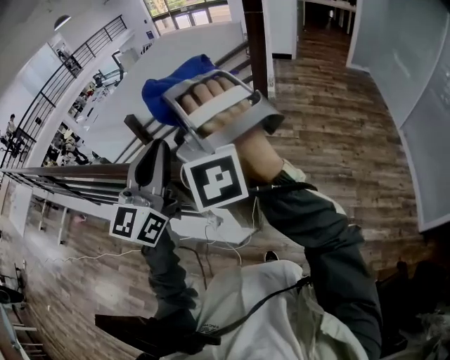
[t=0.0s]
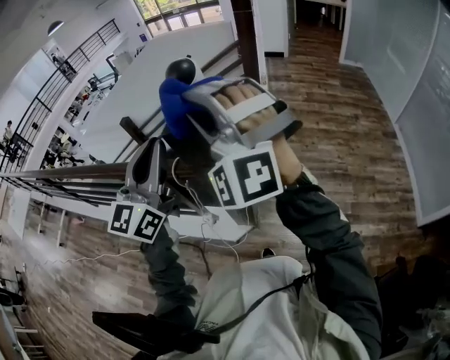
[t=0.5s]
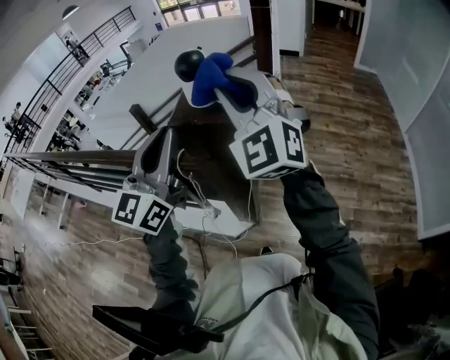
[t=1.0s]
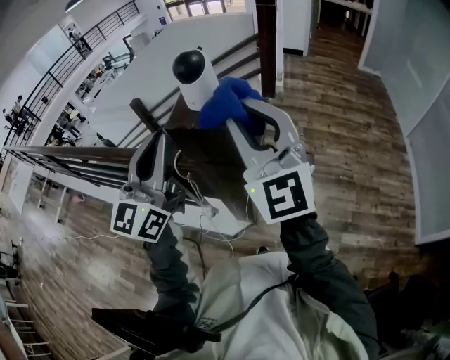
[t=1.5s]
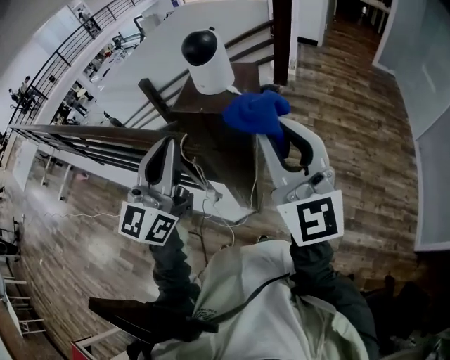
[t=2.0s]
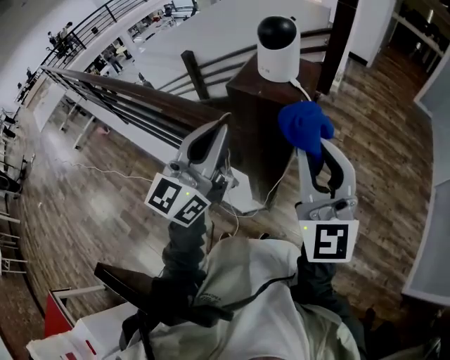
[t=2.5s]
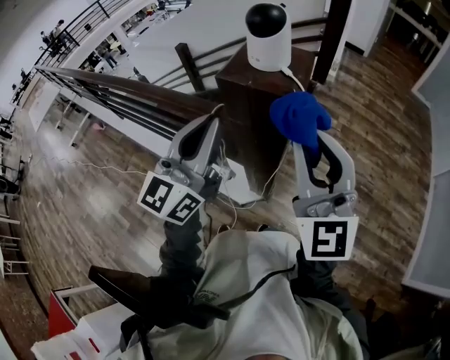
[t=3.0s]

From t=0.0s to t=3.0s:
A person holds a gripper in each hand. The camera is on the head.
From t=0.0s to t=1.5s: The right gripper travels to the right by some 15 cm, and twists some 60 degrees clockwise, seen from behind.
From t=1.5s to t=3.0s: The right gripper travels downward and backward by some 5 cm; the left gripper heads downward, covering about 5 cm.

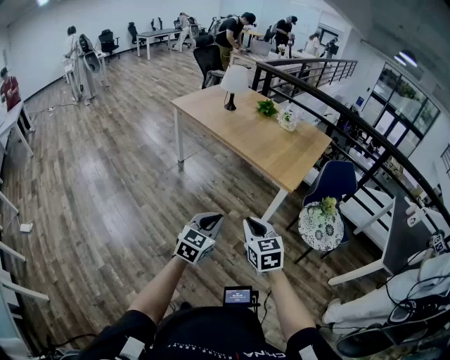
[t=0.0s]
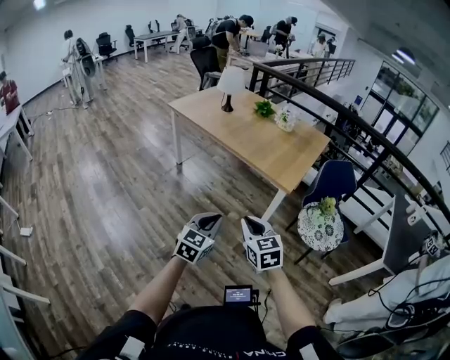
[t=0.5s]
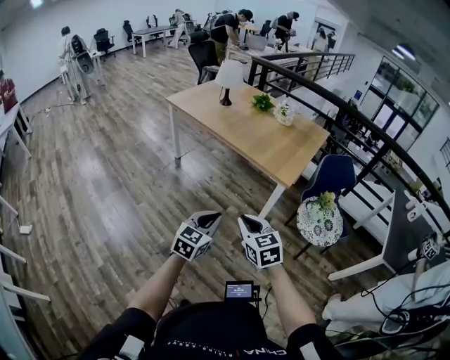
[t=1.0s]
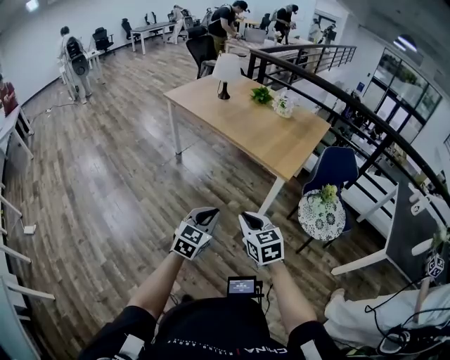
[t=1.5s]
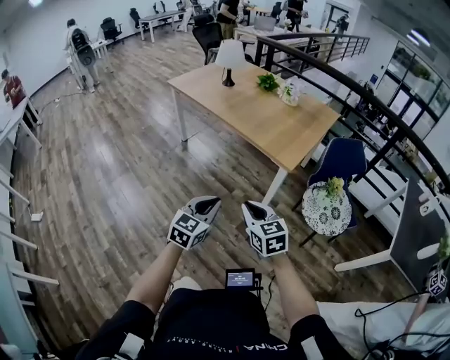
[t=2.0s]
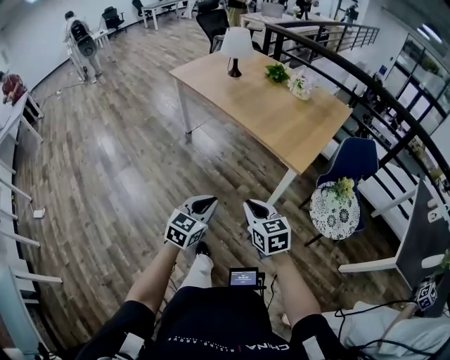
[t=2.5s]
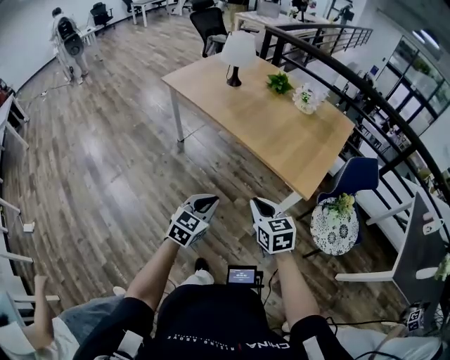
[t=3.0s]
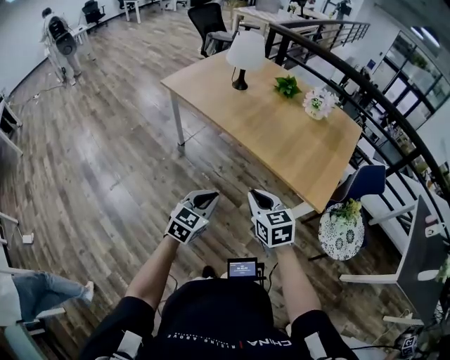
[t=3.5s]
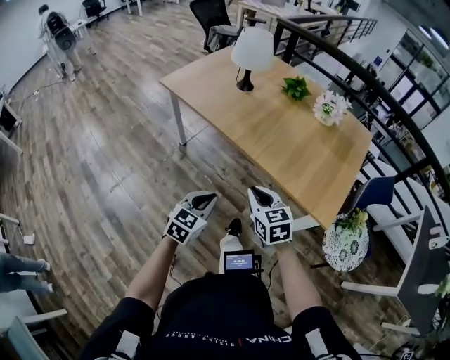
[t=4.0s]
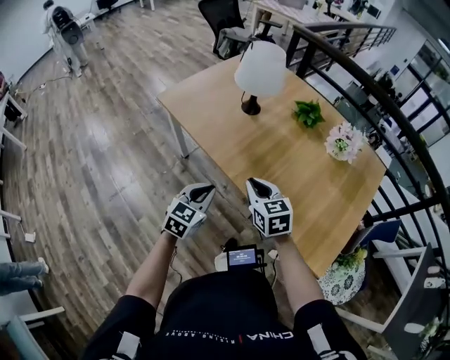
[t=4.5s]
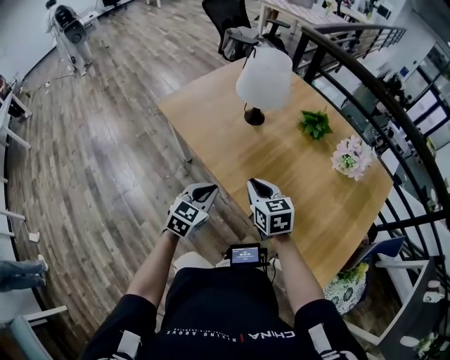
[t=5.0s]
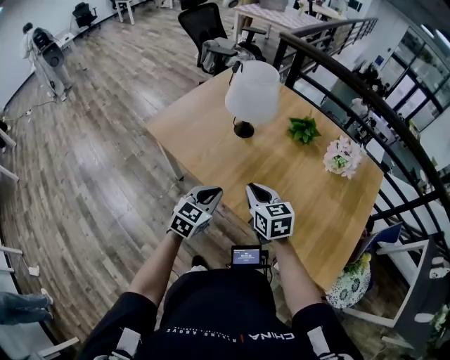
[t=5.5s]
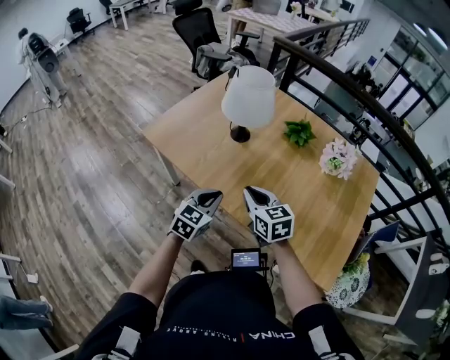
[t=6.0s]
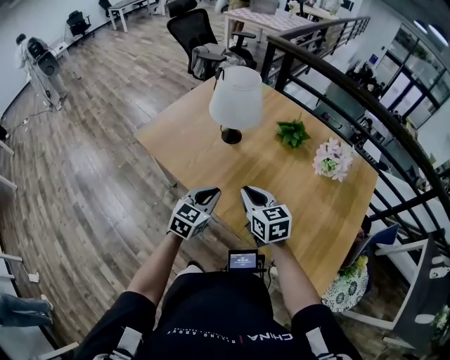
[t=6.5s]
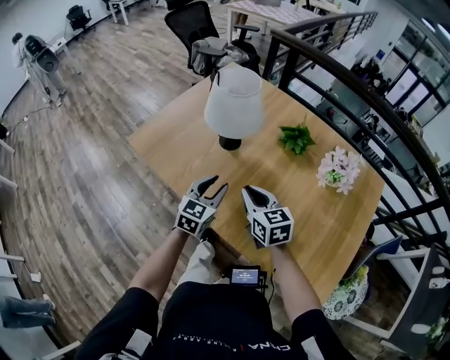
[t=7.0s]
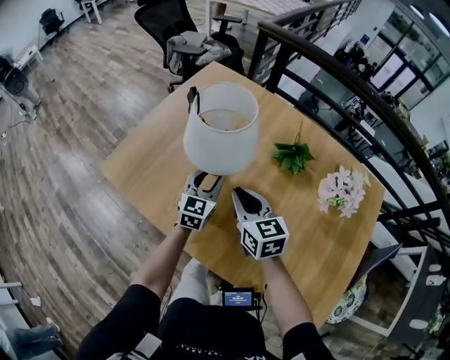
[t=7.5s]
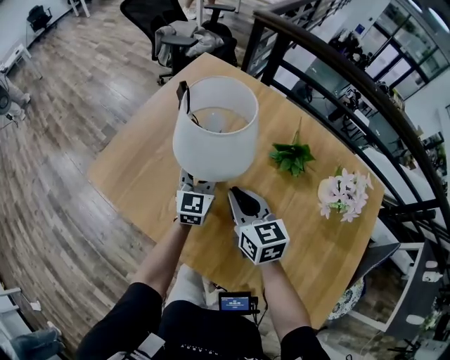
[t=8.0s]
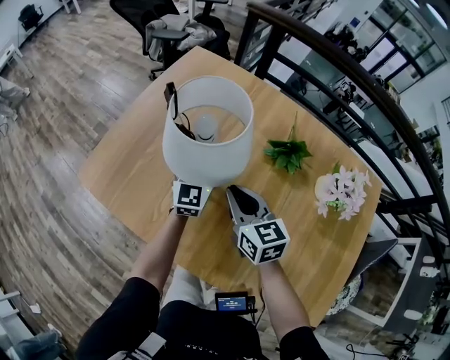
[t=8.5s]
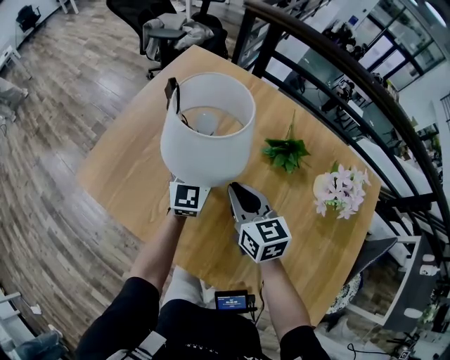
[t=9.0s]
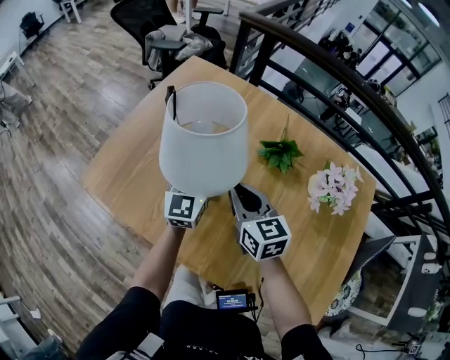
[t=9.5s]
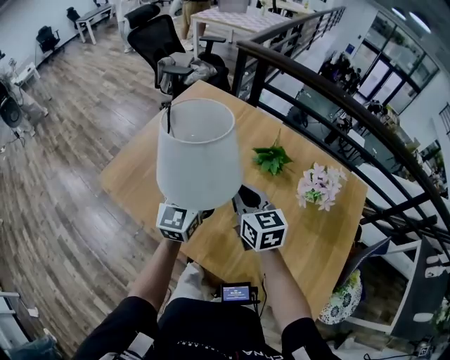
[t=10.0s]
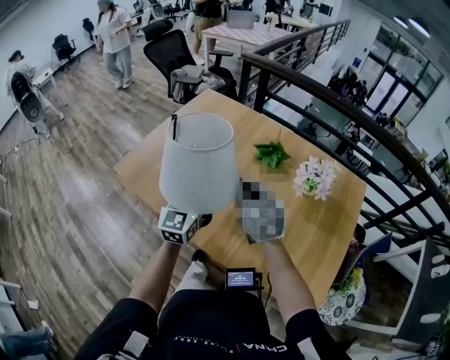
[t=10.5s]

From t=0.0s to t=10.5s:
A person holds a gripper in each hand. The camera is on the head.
From t=0.0s to t=2.0s: The two grippers go approximately 5 cm to the right.
From t=2.0s to t=4.0s: Both grippers are carried forward and to the left, about 50 cm.
From t=4.0s to t=6.5s: The grippers both shift forward by about 40 cm.
From t=6.5s to t=8.5s: The two grippers go about 35 cm forward. The left gripper turns by some 20 degrees, and opens up.
From t=8.5s to t=10.5s: The left gripper shifts some 35 cm backward and upward, and closes up; the right gripper travels backward and upward by some 20 cm.

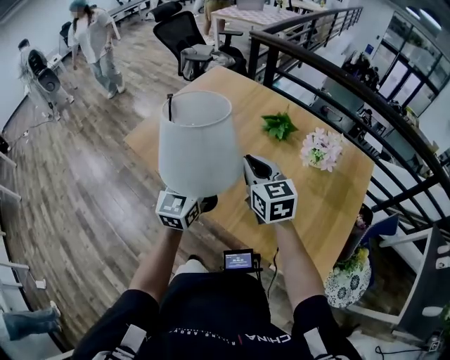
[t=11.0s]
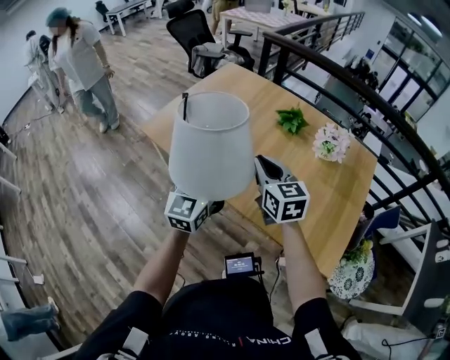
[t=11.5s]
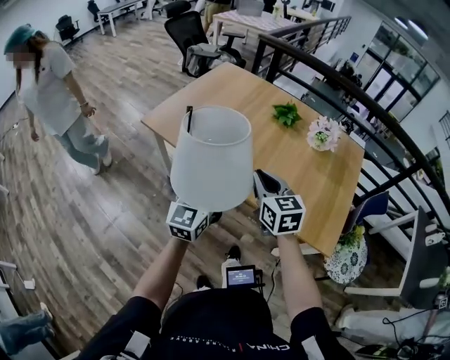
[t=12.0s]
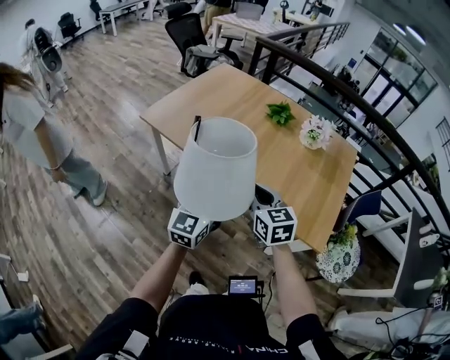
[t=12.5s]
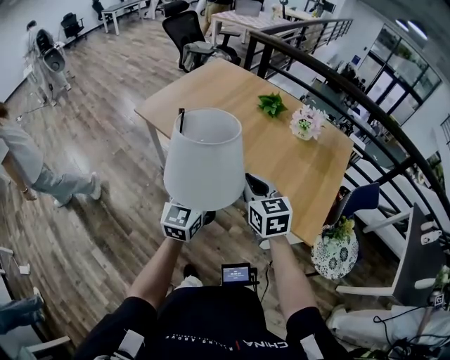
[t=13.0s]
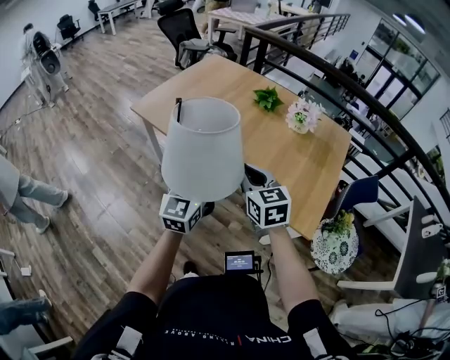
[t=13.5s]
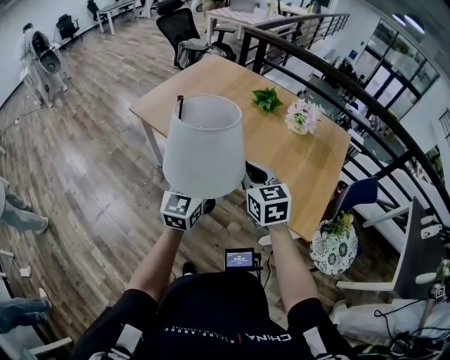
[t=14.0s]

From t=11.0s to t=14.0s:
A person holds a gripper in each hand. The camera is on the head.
From t=11.0s to t=12.5s: Both grippers travel together backward, roughly 25 cm.
From t=12.5s to t=14.0s: Both grippers travel together to the right, roughly 5 cm.

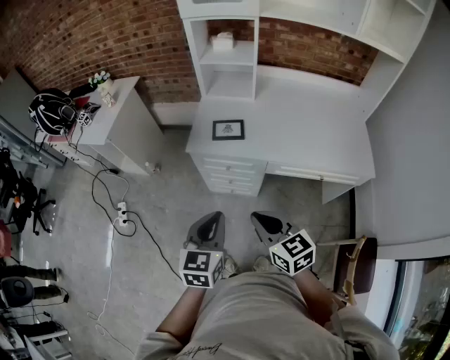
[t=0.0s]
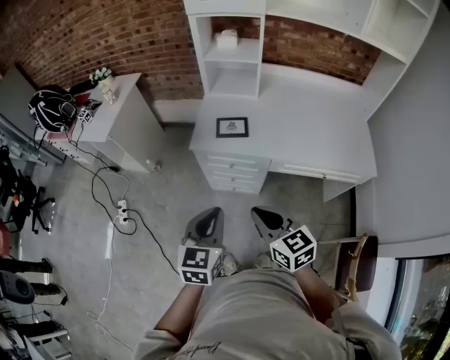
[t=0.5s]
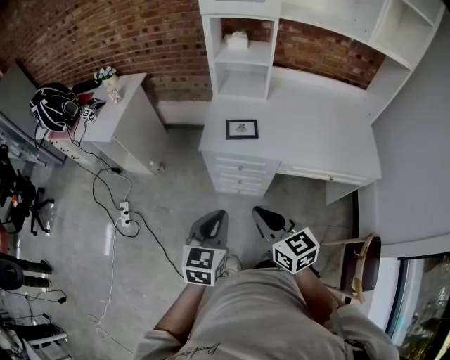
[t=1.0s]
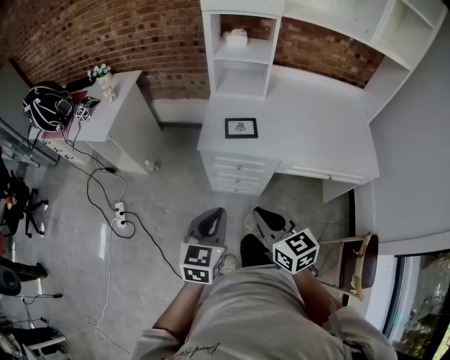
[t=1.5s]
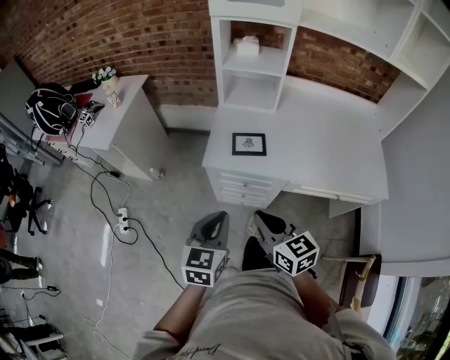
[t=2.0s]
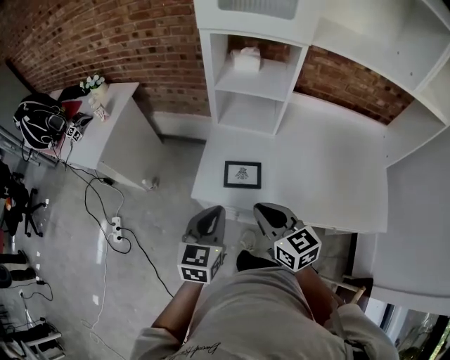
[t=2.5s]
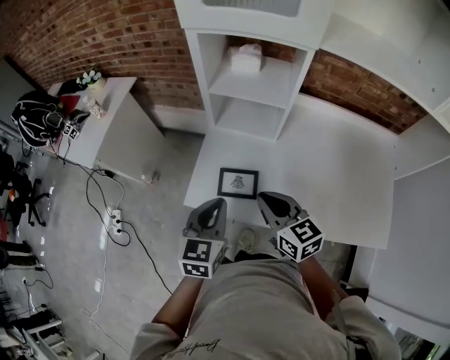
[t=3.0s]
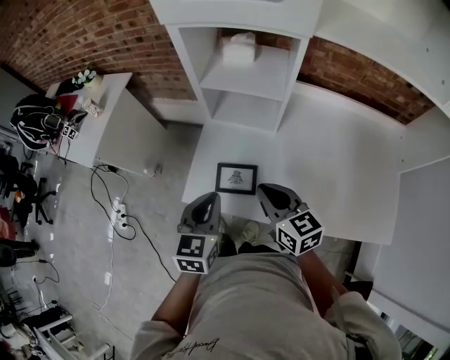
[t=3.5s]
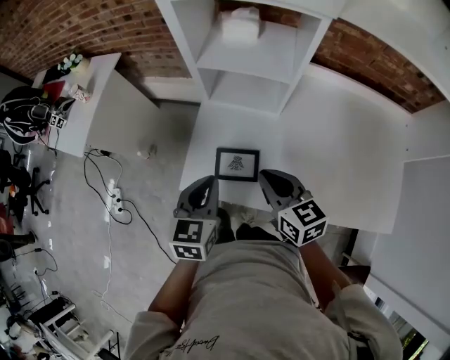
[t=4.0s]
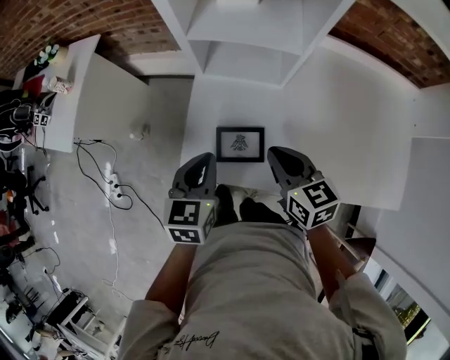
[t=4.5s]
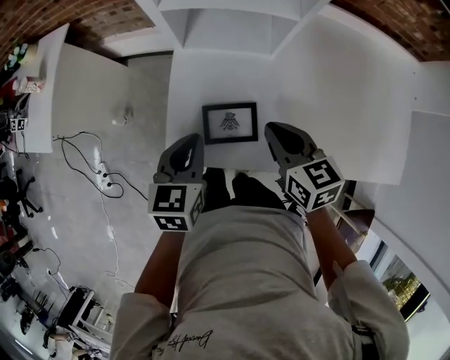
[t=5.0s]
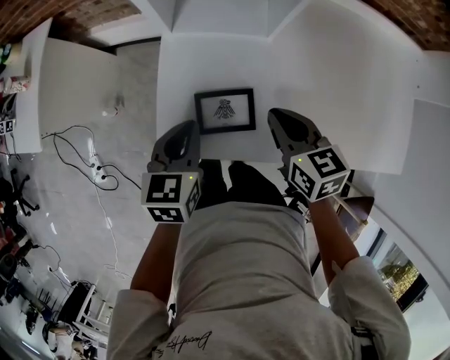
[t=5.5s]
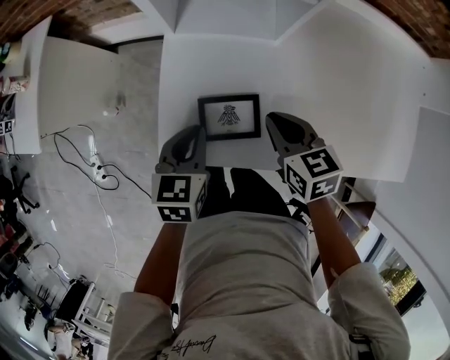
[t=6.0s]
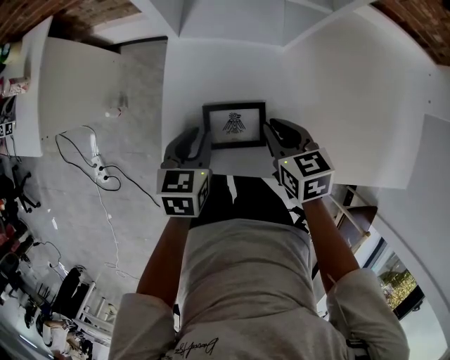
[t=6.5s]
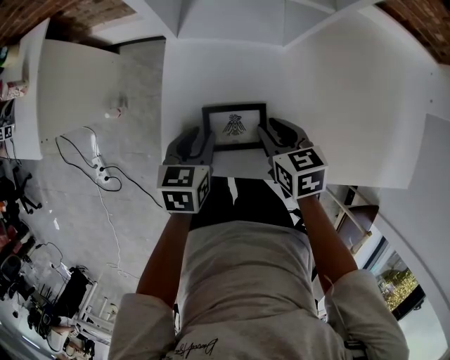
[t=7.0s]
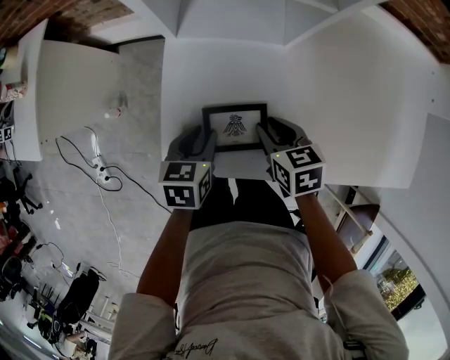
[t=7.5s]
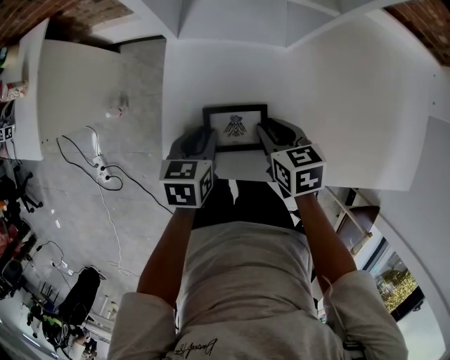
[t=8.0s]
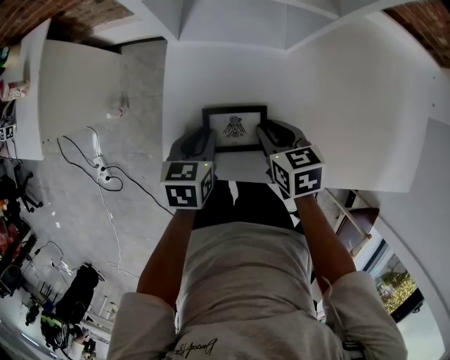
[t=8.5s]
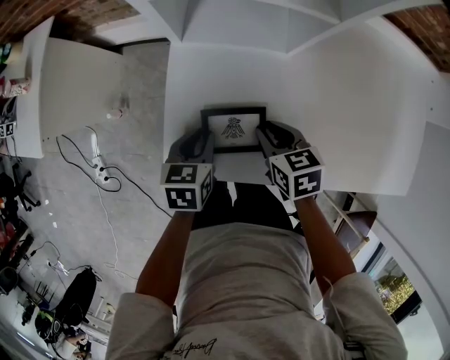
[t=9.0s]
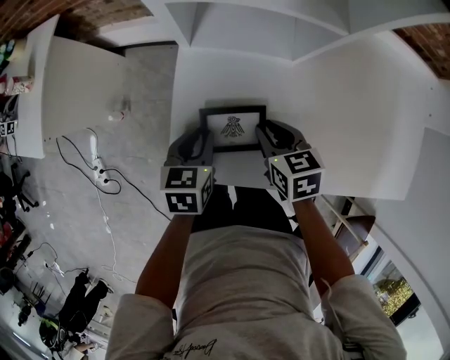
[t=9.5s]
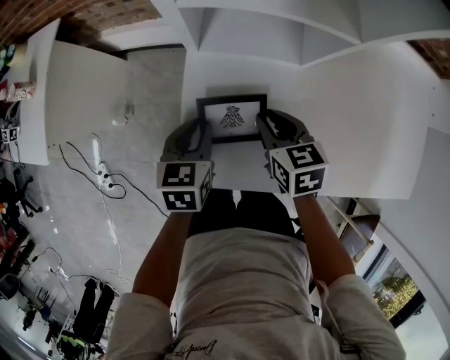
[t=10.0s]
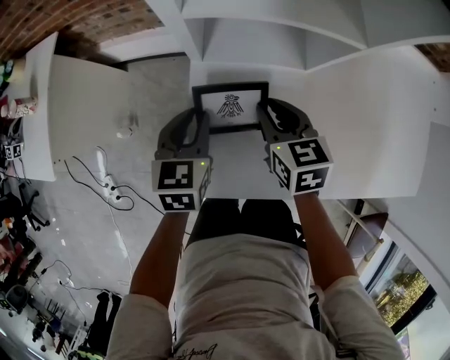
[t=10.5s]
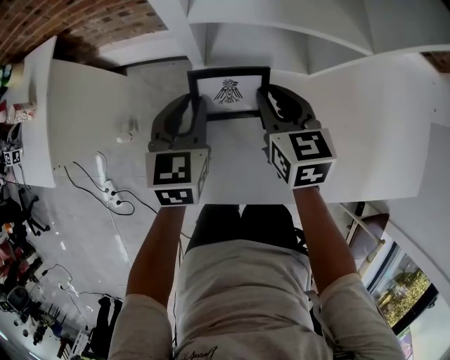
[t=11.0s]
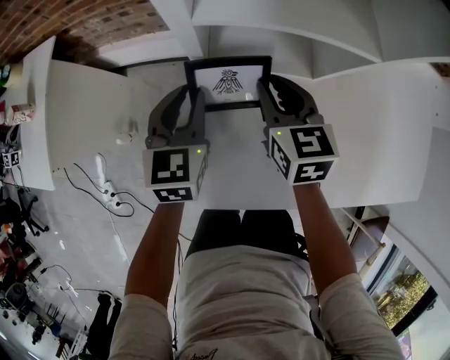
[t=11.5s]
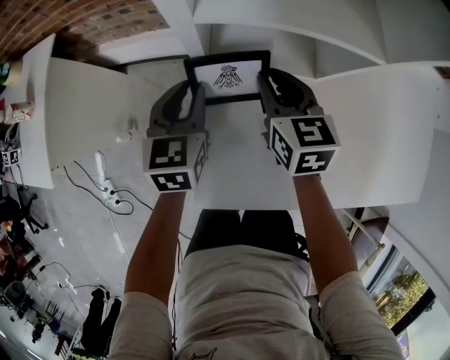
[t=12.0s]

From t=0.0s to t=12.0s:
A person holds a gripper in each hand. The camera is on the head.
From t=0.0s to t=2.0s: The two grippers go about 15 cm forward and to the left.
From t=2.0s to t=4.0s: The right gripper moves forward and to the right, some 35 cm. Meanwhile the left gripper moves forward, about 30 cm.
From t=4.0s to t=6.0s: Both grippers move downward, roughly 15 cm.
From t=6.0s to t=8.0s: The grippers both shift downward by approximately 10 cm.
From t=8.0s to t=10.0s: The two grippers go some 5 cm forward.
From t=10.0s to t=12.0s: Both grippers move forward, some 15 cm.
